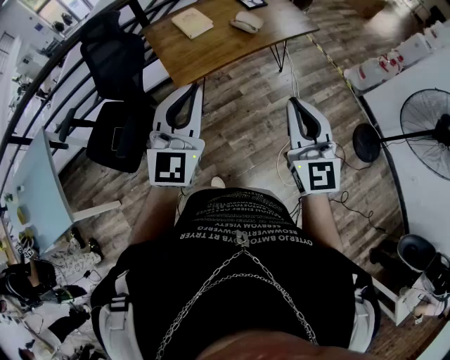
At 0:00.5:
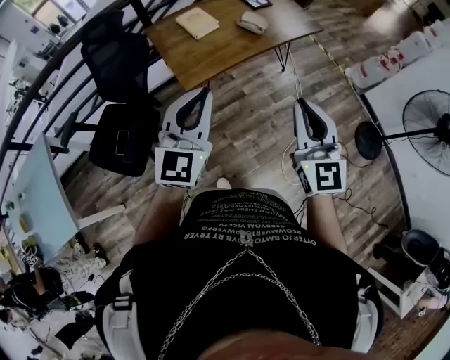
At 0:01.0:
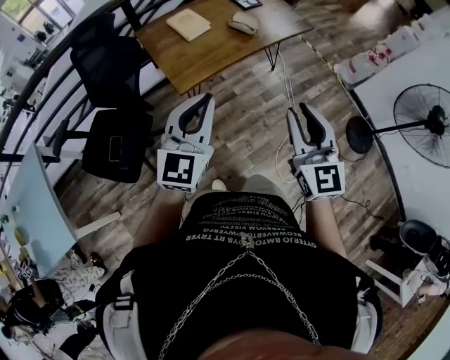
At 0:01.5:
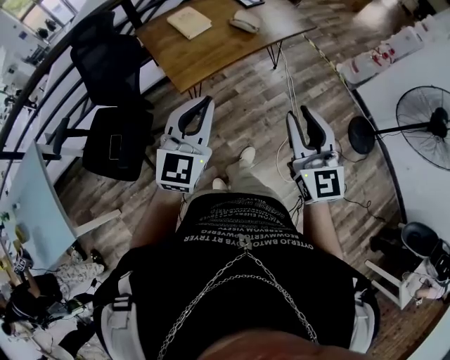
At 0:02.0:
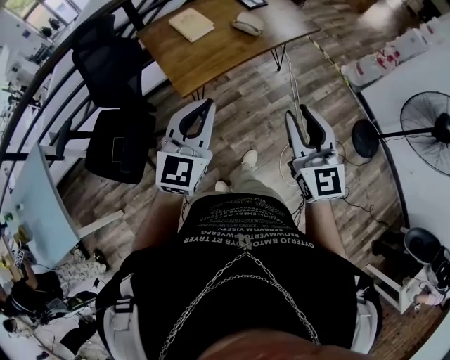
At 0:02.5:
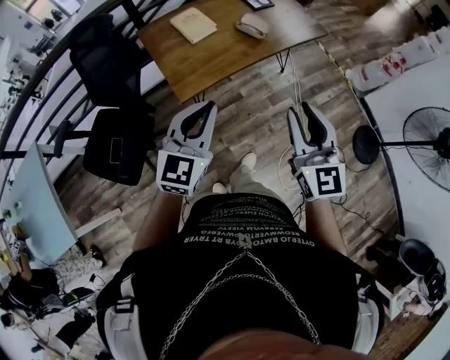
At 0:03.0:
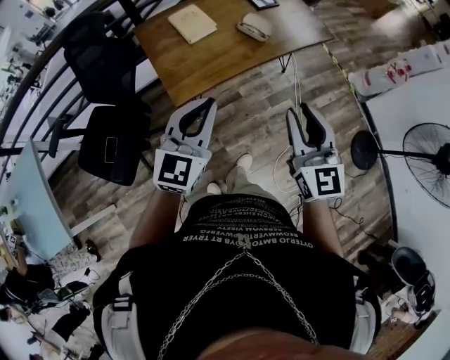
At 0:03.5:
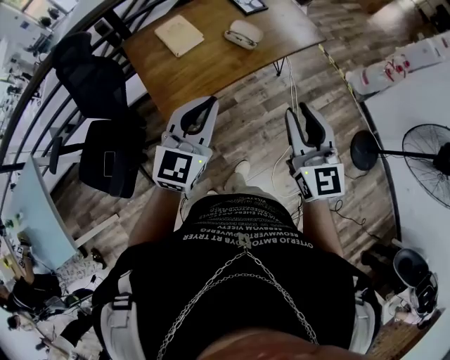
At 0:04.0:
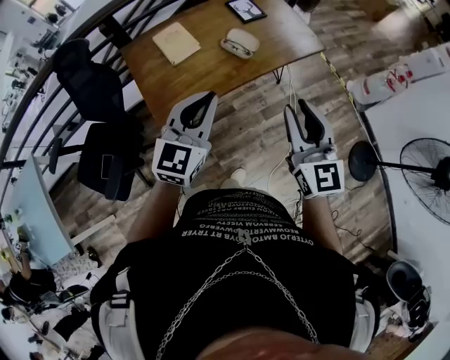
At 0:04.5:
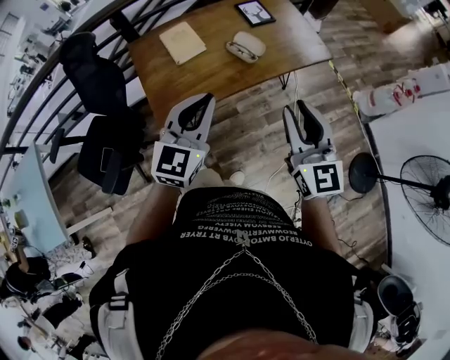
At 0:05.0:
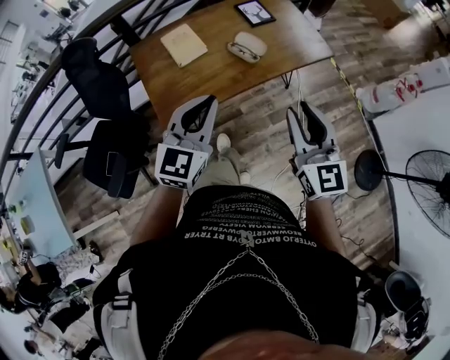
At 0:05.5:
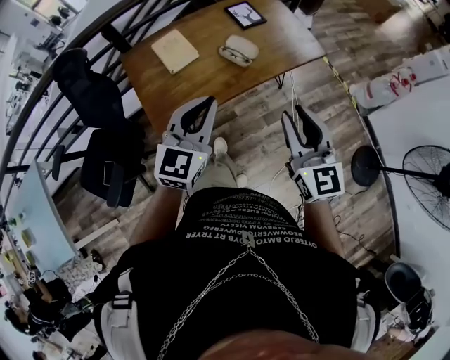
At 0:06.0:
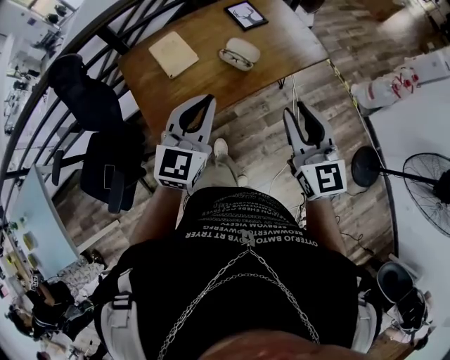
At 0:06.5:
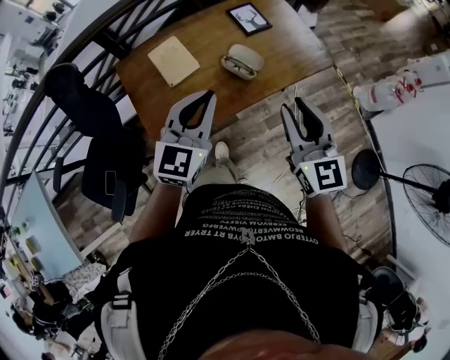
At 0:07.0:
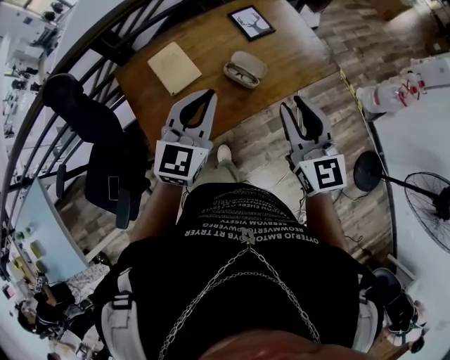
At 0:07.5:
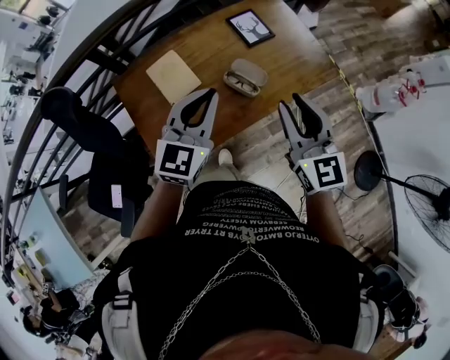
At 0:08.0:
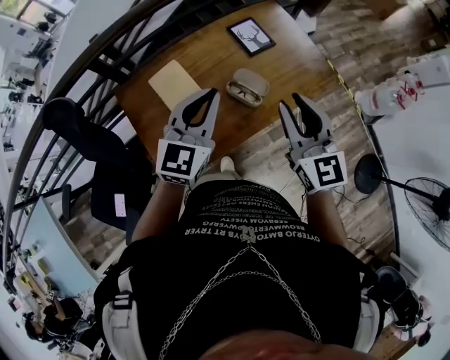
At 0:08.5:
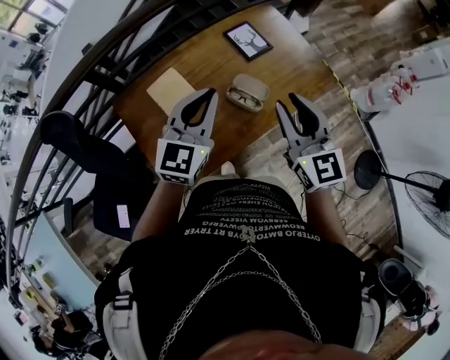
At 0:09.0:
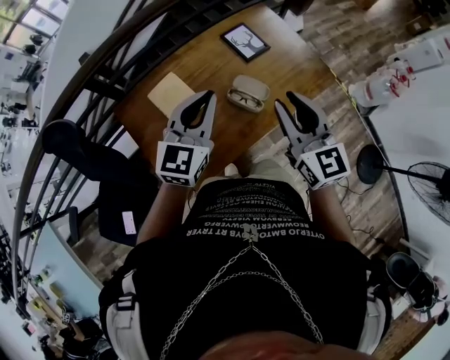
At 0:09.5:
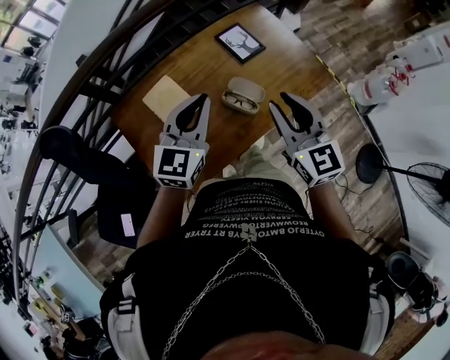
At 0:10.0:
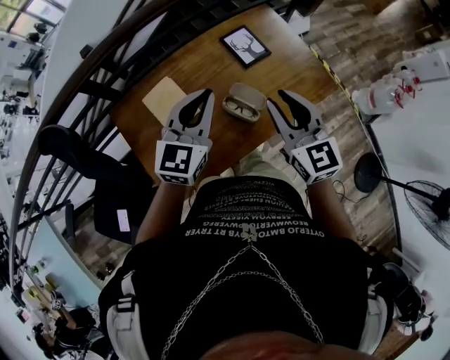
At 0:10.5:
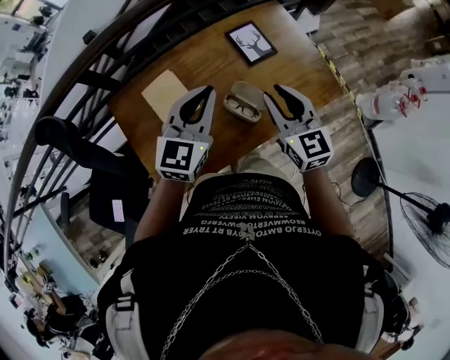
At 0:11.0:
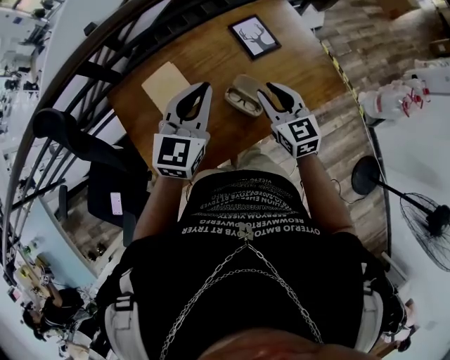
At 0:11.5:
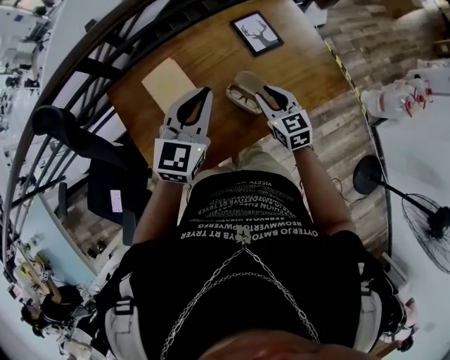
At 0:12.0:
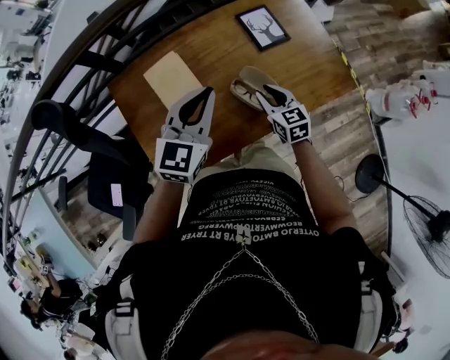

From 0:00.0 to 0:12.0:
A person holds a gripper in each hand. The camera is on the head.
From 0:00.0 to 0:02.0: The right gripper moves about 5 cm, and opens. Meanwhile the left gripper shifts roughly 5 cm downward.
From 0:02.0 to 0:04.0: The left gripper is displaced forward and to the right by some 25 cm. Meanwhile the right gripper shifts approximately 20 cm forward.
From 0:04.0 to 0:06.0: Both grippers travel together forward, roughly 10 cm.
From 0:06.0 to 0:08.0: Both grippers move forward, some 20 cm.
From 0:08.0 to 0:10.0: Both grippers move forward, approximately 10 cm.
From 0:10.0 to 0:12.0: The left gripper is displaced downward by some 5 cm; the right gripper is displaced downward by roughly 25 cm, and turns by some 20 degrees.

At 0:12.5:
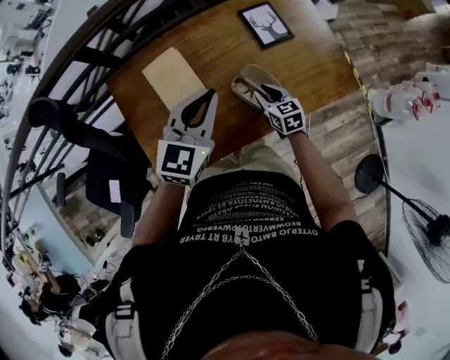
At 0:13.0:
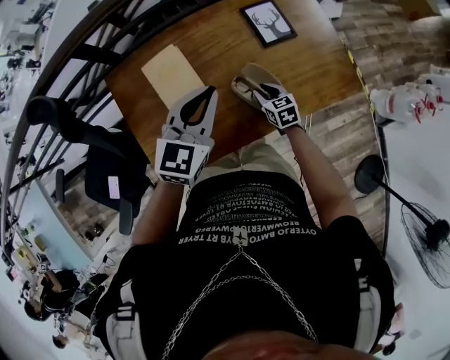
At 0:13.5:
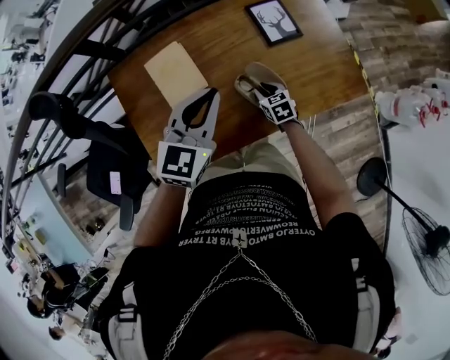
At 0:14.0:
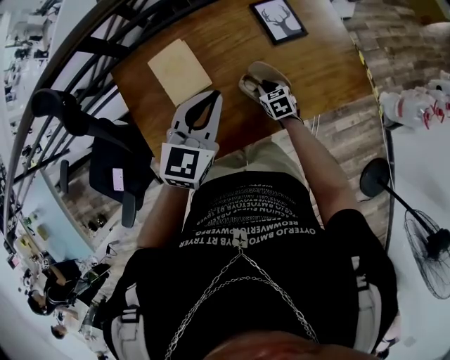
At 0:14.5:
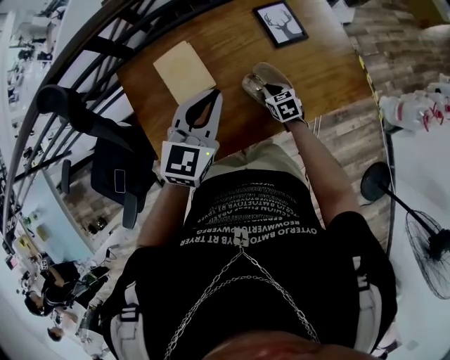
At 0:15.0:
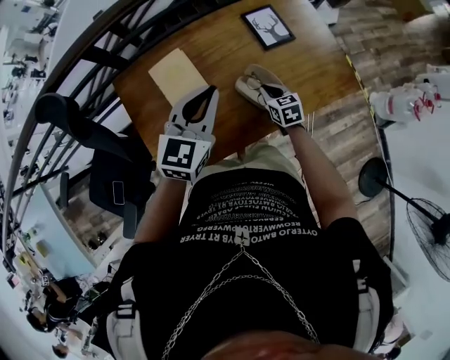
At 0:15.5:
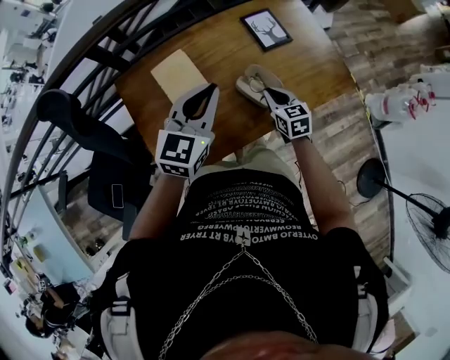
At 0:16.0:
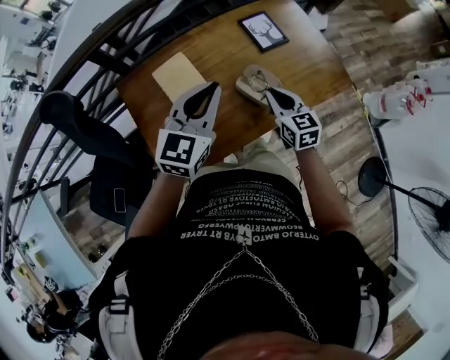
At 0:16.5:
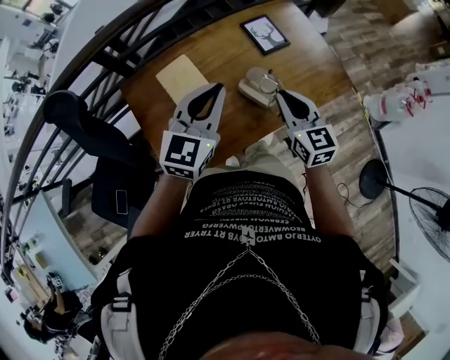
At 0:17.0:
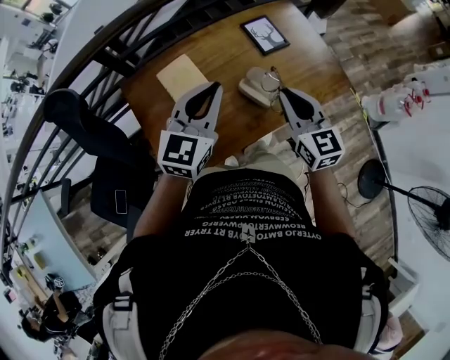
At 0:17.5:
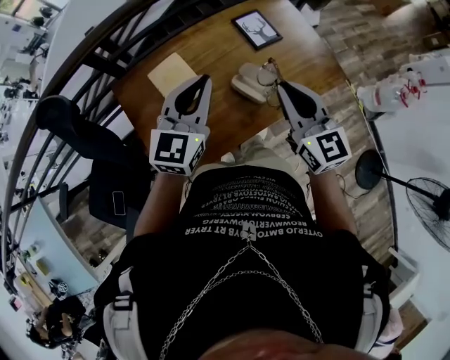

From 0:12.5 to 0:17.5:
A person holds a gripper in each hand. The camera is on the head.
From 0:12.5 to 0:15.0: The right gripper goes downward and returns, approximately 10 cm each way.
From 0:15.0 to 0:17.5: The right gripper goes about 30 cm upward, and angles its fingers upward, by about 30 degrees. The left gripper moves upward, roughly 5 cm.

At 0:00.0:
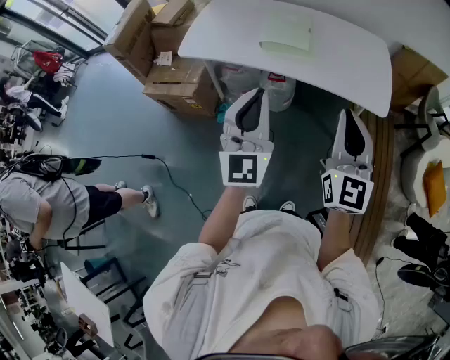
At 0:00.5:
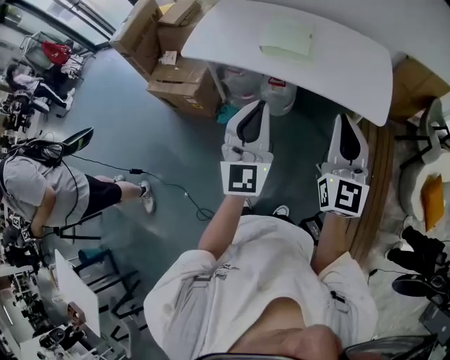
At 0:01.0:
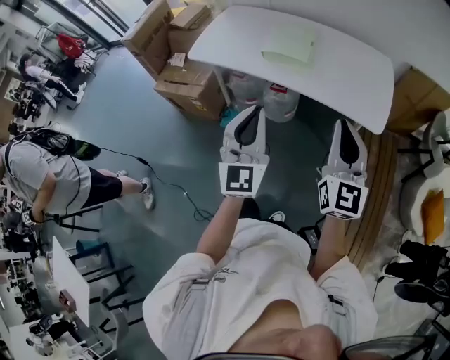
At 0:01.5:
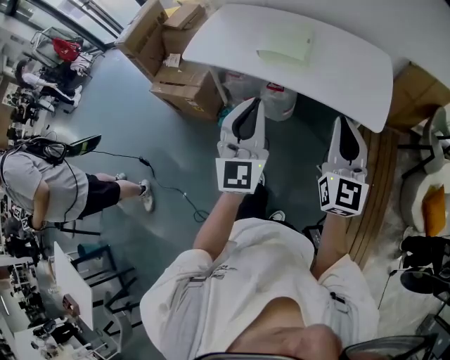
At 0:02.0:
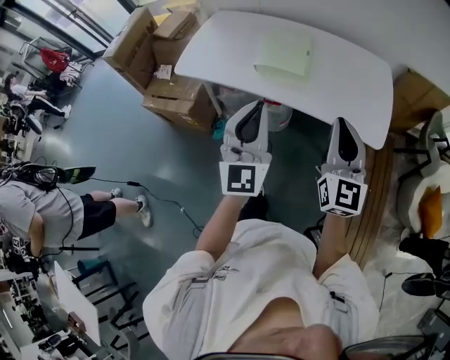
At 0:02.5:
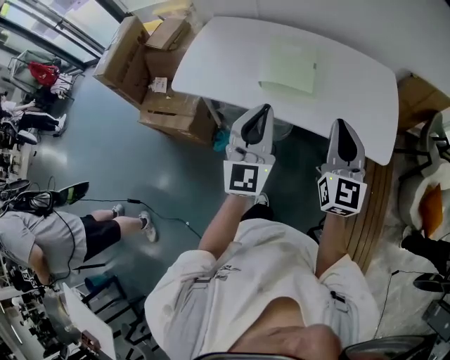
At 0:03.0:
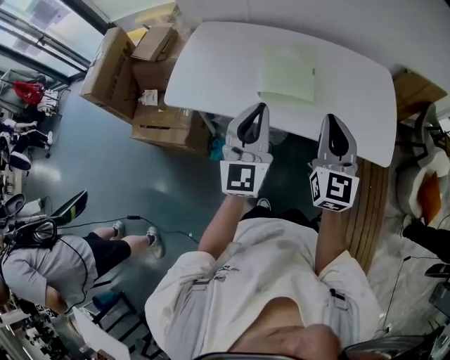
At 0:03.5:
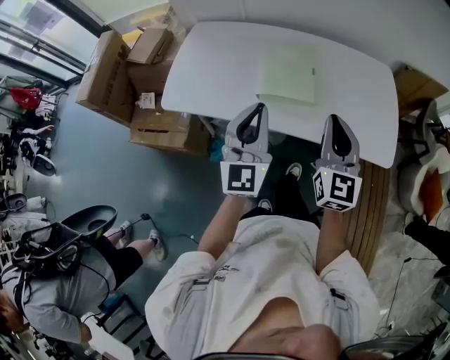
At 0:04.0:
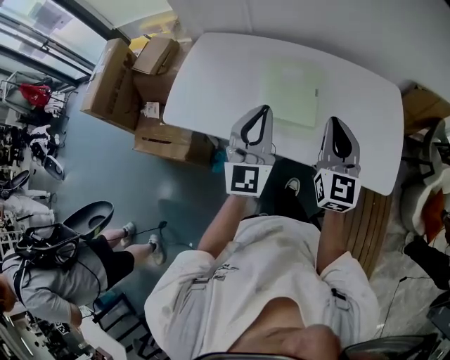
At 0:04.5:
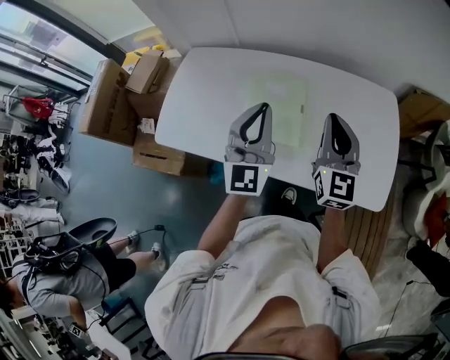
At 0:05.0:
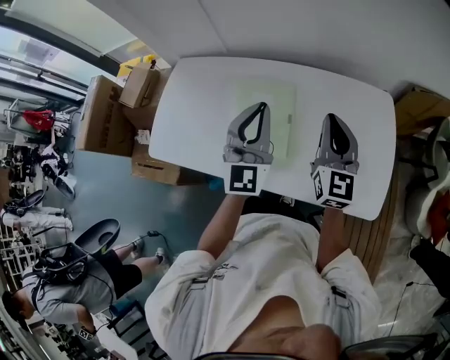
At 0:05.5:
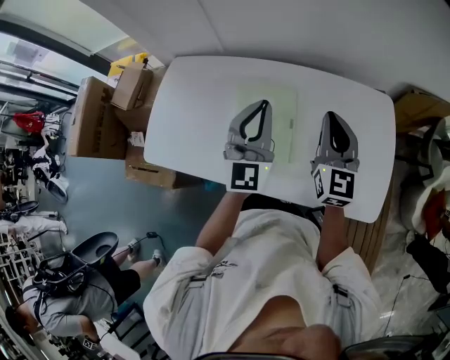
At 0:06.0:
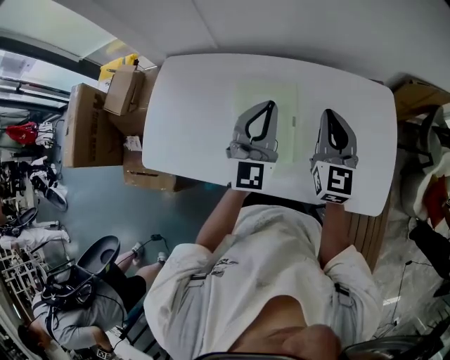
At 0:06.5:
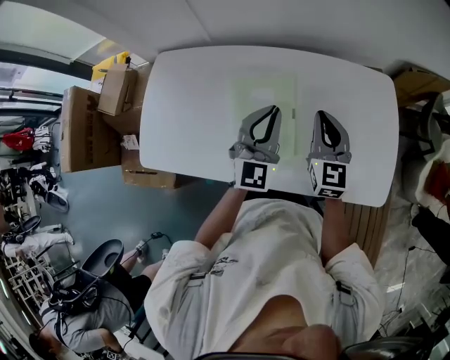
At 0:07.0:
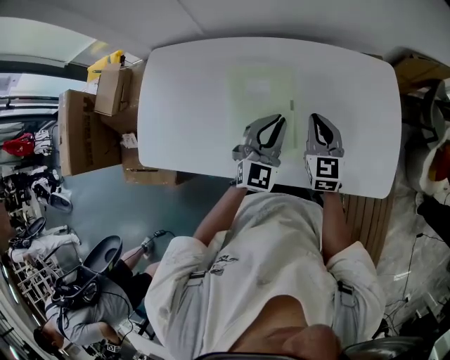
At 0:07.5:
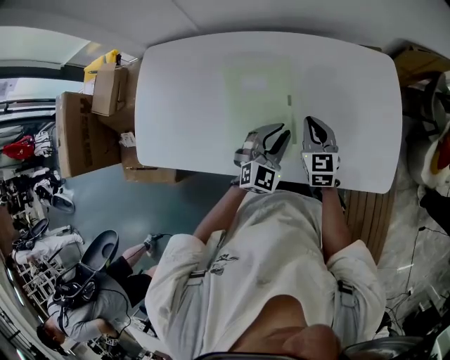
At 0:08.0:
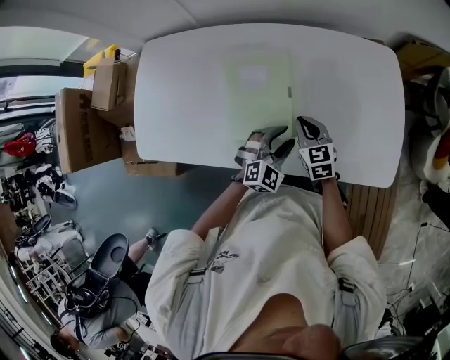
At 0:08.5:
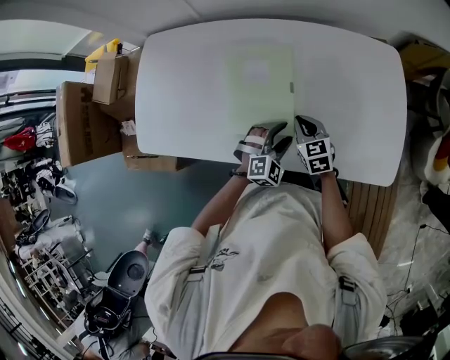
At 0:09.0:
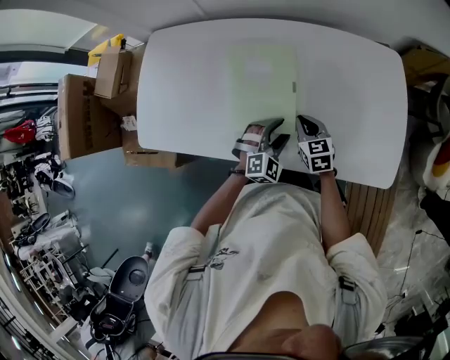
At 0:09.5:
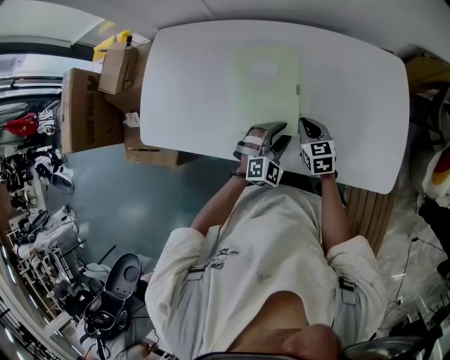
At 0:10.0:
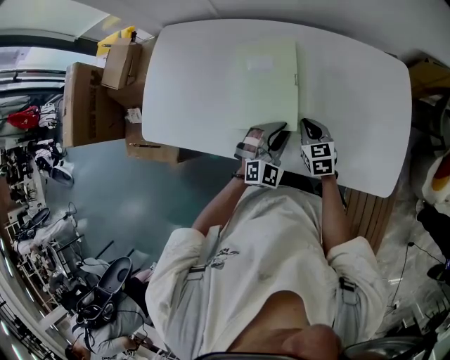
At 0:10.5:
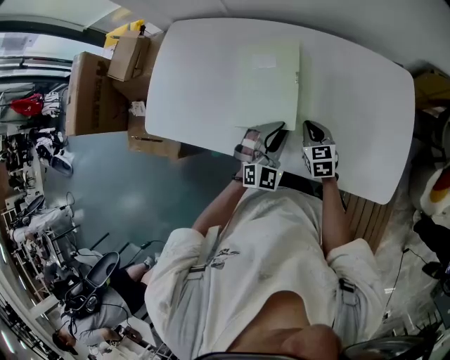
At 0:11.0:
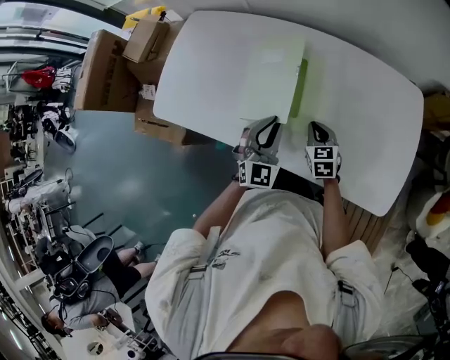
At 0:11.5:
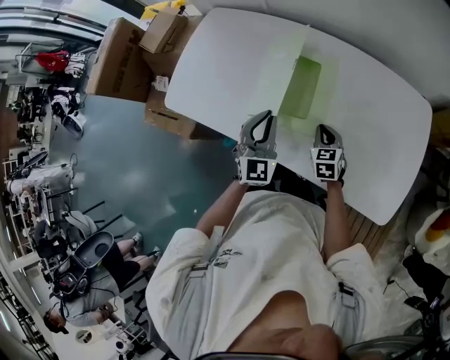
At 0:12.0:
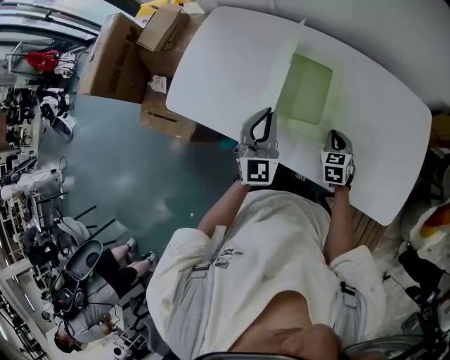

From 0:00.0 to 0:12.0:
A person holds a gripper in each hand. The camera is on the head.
From 0:00.0 to 0:02.0: Both grippers move forward, about 10 cm.
From 0:02.0 to 0:04.0: Both grippers travel together forward, some 30 cm.
From 0:04.0 to 0:06.0: The right gripper shifts roughly 20 cm forward. Meanwhile the left gripper is displaced forward and to the right by approximately 25 cm.
From 0:06.0 to 0:08.0: Both grippers travel together downward, roughly 25 cm. The right gripper turns by about 30 degrees. Meanwhile the left gripper angles its fingers downward, by about 40 degrees, and opens.
From 0:08.0 to 0:10.0: The left gripper closes its fingers.
From 0:10.0 to 0:12.0: The left gripper moves to the left and upward, roughly 20 cm, and rotates approximately 40 degrees.
